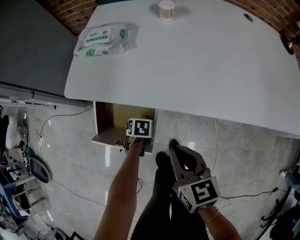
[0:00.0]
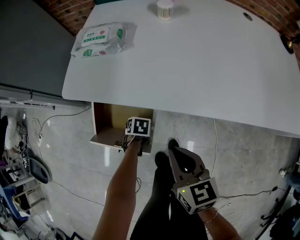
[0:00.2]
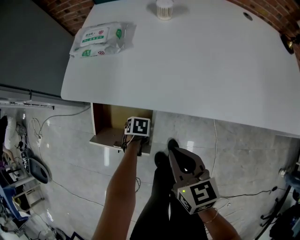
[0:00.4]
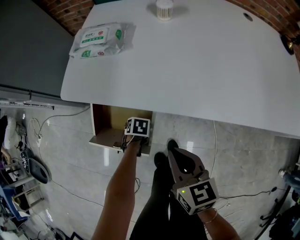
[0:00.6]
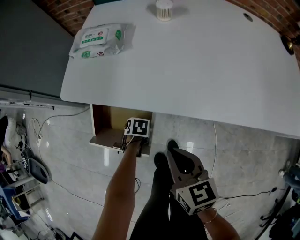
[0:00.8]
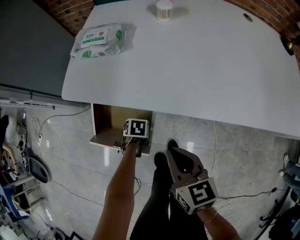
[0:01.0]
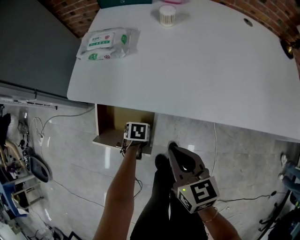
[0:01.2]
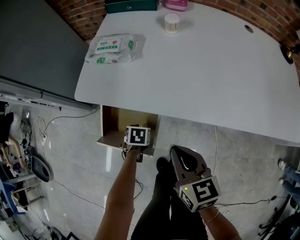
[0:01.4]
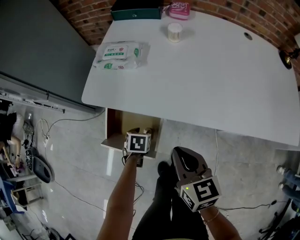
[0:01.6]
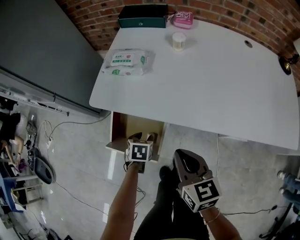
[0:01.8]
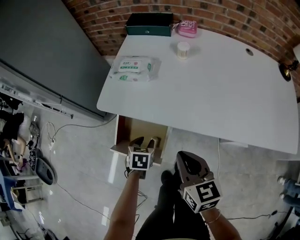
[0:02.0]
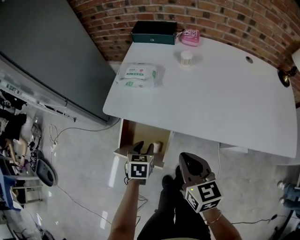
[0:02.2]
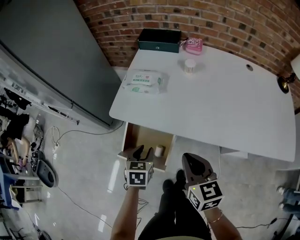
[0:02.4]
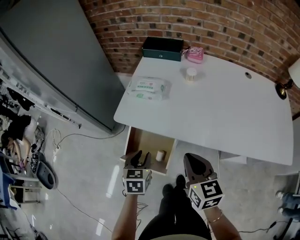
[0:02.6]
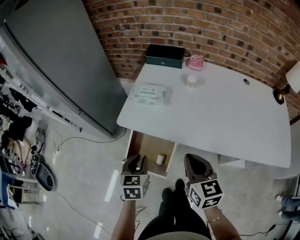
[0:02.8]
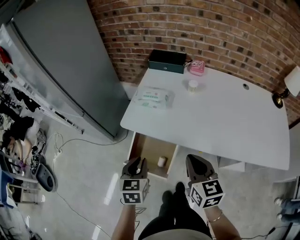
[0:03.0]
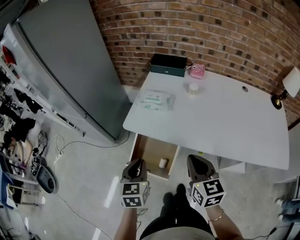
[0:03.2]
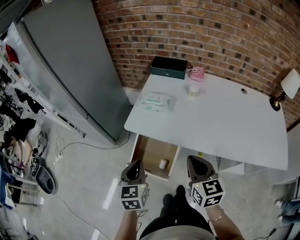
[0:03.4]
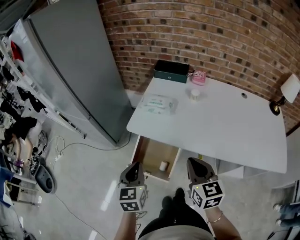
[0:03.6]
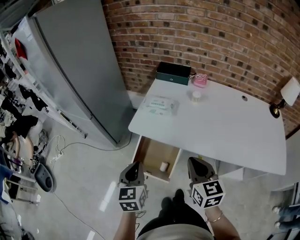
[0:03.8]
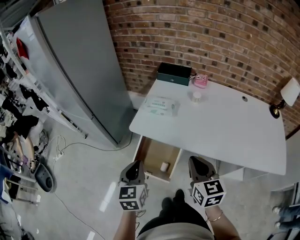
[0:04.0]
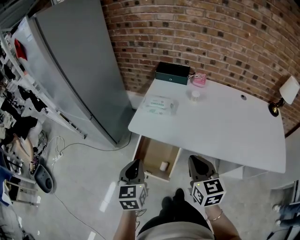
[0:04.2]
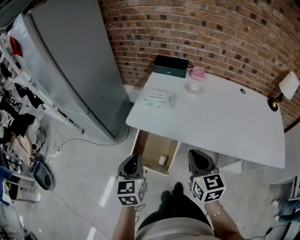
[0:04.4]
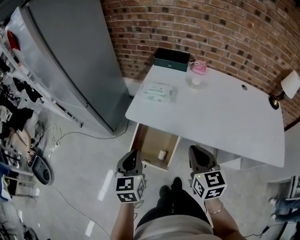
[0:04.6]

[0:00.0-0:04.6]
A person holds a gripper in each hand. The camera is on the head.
0.0 to 1.6 s: The right gripper moves upward, approximately 5 cm, while the left gripper moves upward, some 10 cm.
1.6 to 3.0 s: The right gripper is displaced upward by roughly 15 cm. The left gripper is displaced upward by about 30 cm, angles its fingers upward, by roughly 40 degrees, and closes up.
3.0 to 4.6 s: The left gripper goes approximately 5 cm upward.

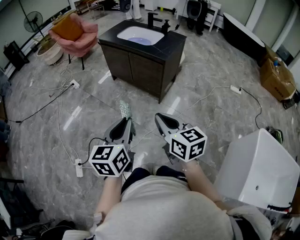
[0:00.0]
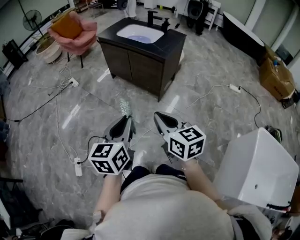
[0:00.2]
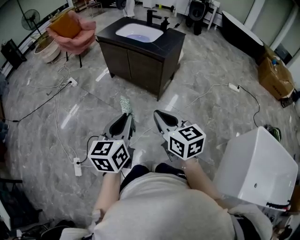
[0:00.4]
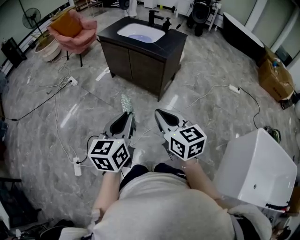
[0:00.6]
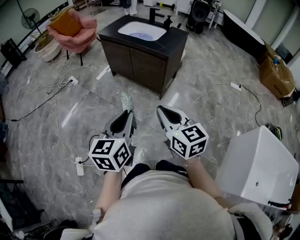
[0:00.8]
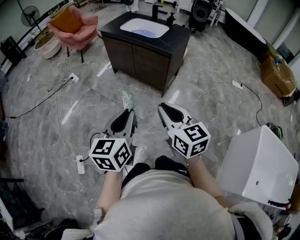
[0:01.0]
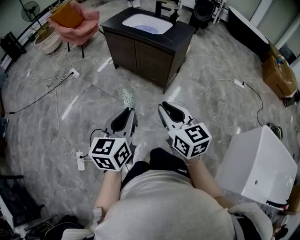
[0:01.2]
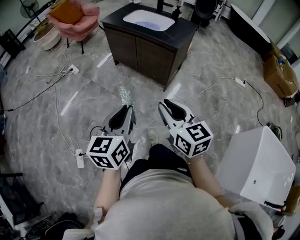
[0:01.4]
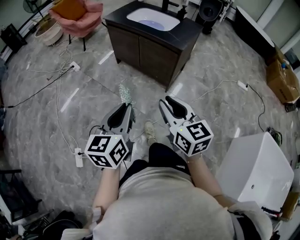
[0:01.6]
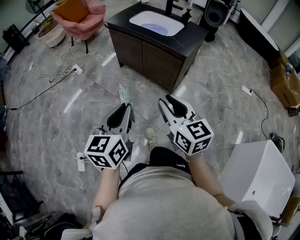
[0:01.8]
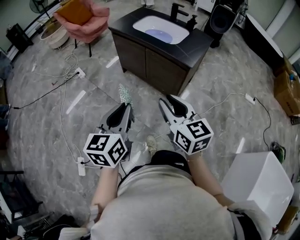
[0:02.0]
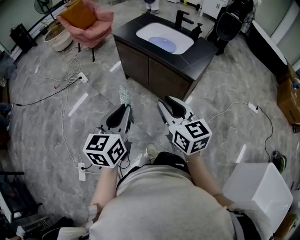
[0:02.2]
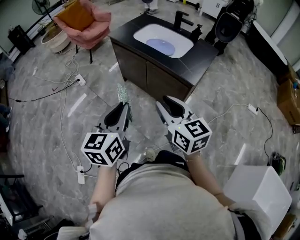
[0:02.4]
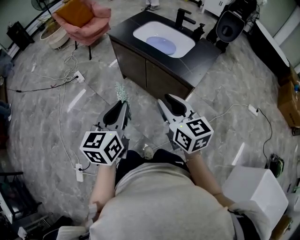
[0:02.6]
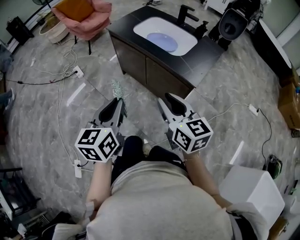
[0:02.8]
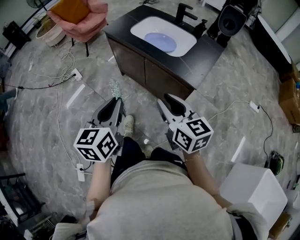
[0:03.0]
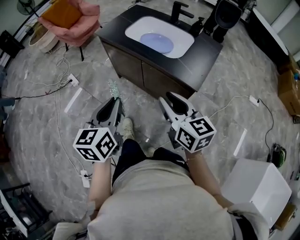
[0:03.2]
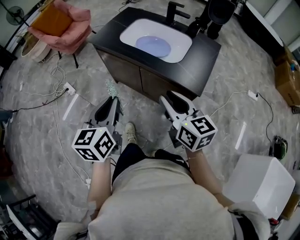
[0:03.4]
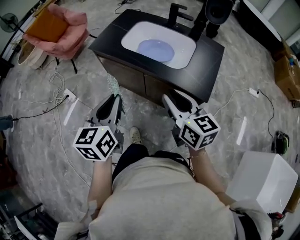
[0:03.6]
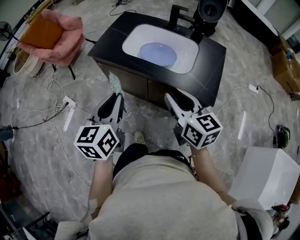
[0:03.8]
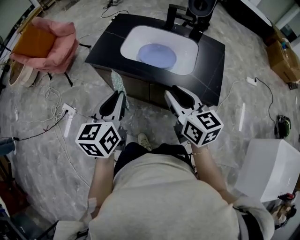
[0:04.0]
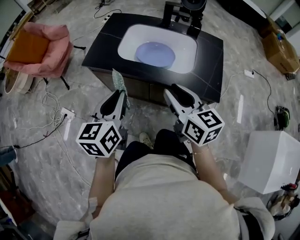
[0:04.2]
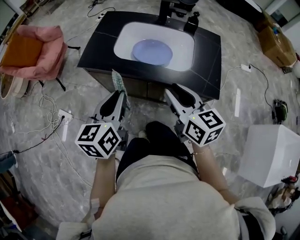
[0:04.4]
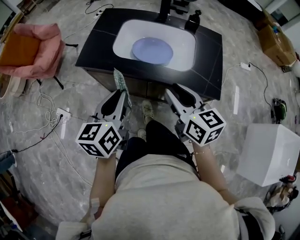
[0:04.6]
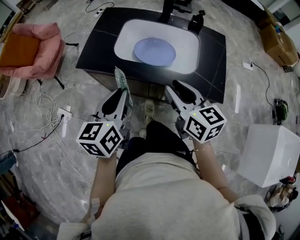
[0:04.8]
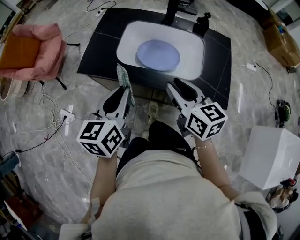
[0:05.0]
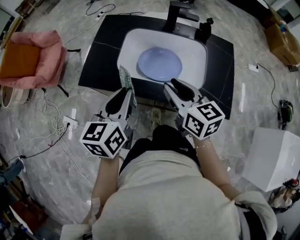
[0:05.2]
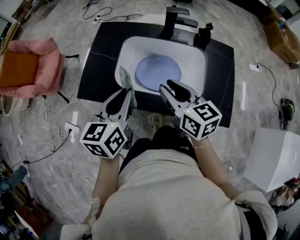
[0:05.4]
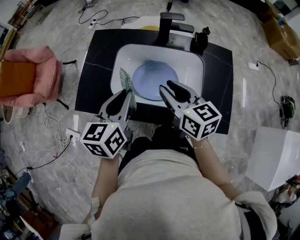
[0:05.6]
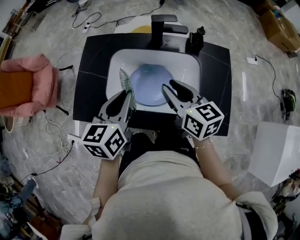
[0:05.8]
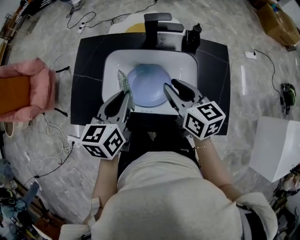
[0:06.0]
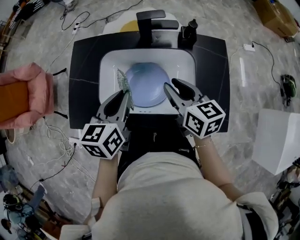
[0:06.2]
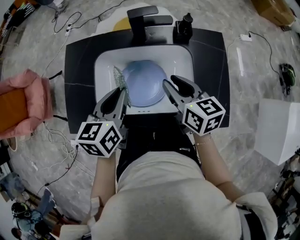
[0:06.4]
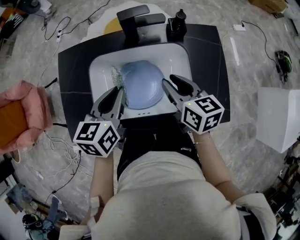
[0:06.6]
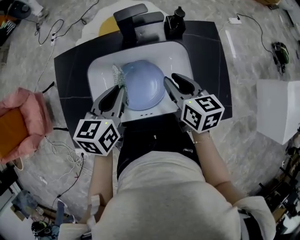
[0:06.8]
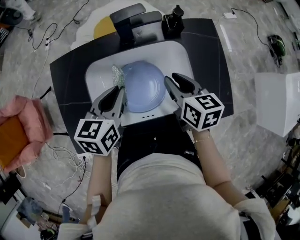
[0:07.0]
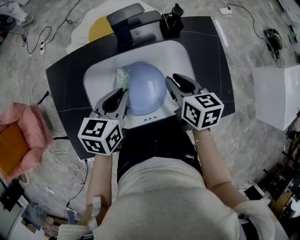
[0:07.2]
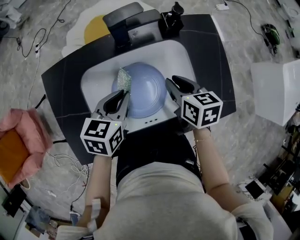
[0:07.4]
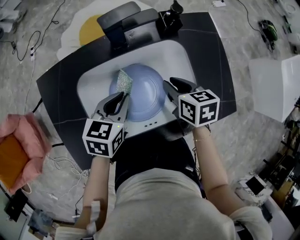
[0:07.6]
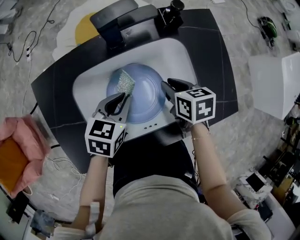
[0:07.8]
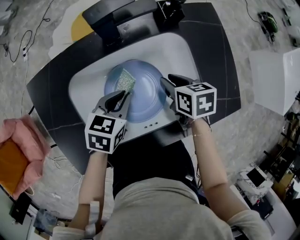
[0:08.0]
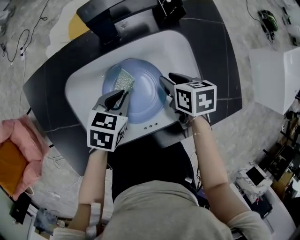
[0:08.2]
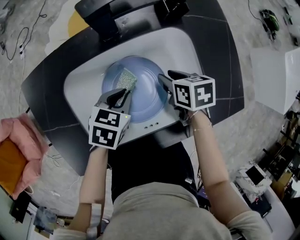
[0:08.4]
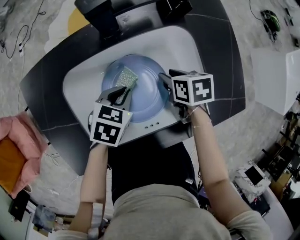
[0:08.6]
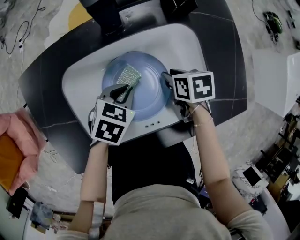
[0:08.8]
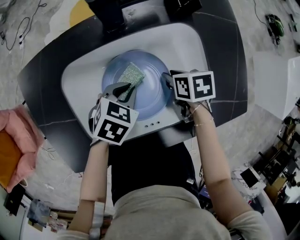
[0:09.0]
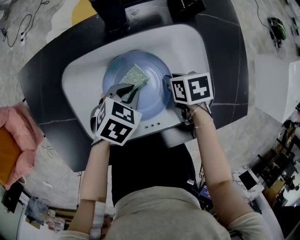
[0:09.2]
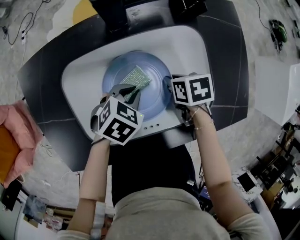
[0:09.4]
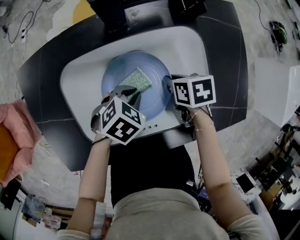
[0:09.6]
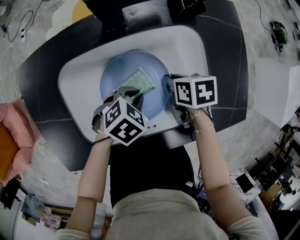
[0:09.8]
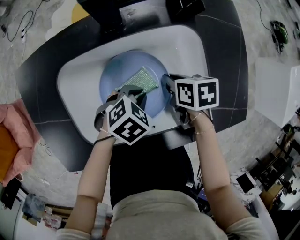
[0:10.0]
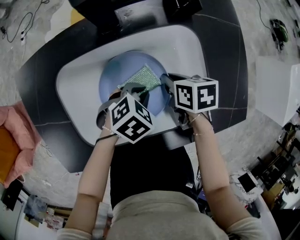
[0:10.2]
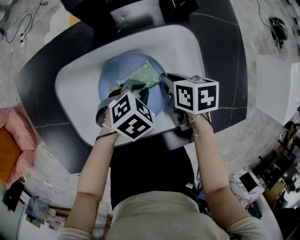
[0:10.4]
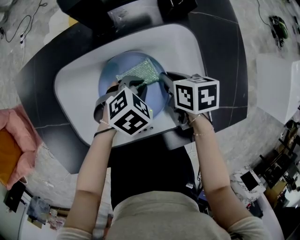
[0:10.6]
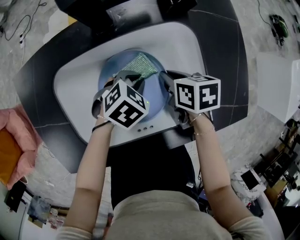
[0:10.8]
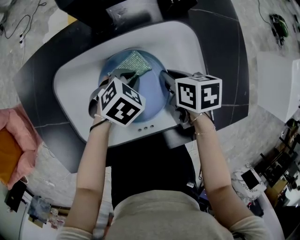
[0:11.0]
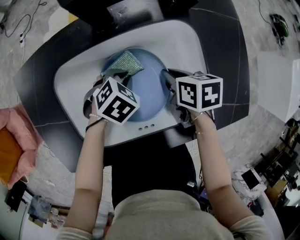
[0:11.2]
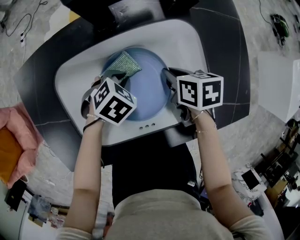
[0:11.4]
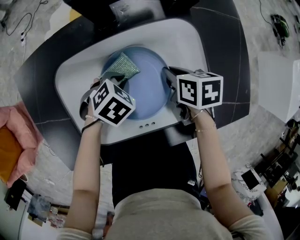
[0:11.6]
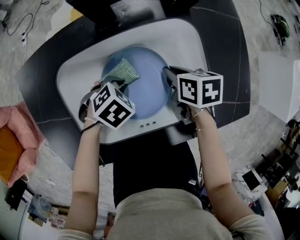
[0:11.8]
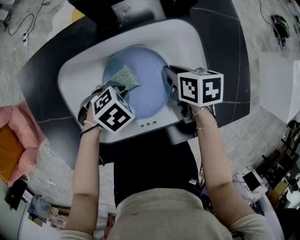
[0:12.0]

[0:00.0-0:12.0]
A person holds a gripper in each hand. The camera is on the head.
0.0 to 1.6 s: Both grippers travel together forward and to the left, roughly 10 cm. The right gripper opens up.
1.6 to 3.0 s: Both grippers travel together forward, some 30 cm.
3.0 to 4.4 s: Both grippers travel together forward, some 25 cm. The left gripper turns by roughly 30 degrees. Meanwhile the right gripper rotates about 20 degrees.
4.4 to 6.0 s: The grippers both shift forward by about 25 cm.
6.0 to 7.6 s: Both grippers move downward, some 15 cm. The right gripper turns by some 40 degrees; the left gripper swivels approximately 40 degrees.
7.6 to 9.0 s: Both grippers travel together downward, approximately 10 cm. The left gripper rotates roughly 20 degrees. Meanwhile the right gripper turns by some 20 degrees.
9.0 to 10.4 s: The left gripper ends up some 5 cm from where it was.
10.4 to 12.0 s: The left gripper changes place by approximately 10 cm.

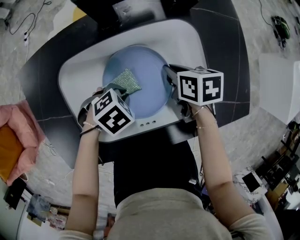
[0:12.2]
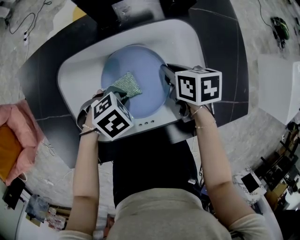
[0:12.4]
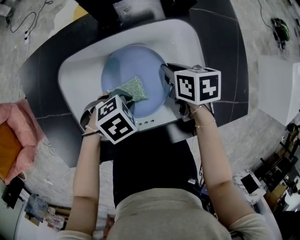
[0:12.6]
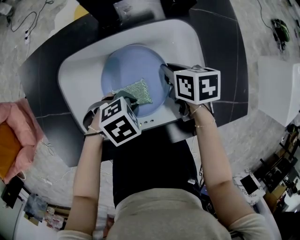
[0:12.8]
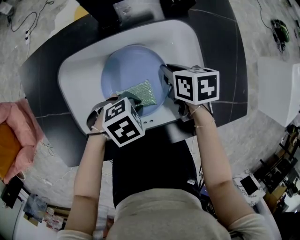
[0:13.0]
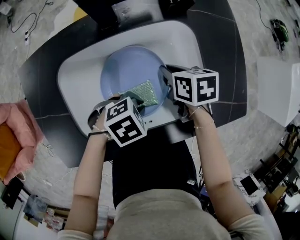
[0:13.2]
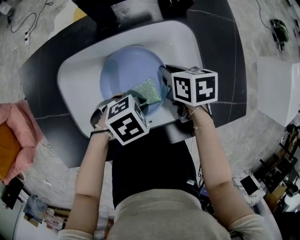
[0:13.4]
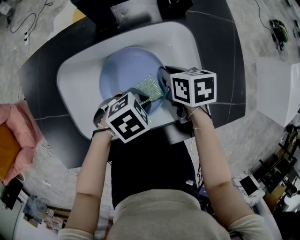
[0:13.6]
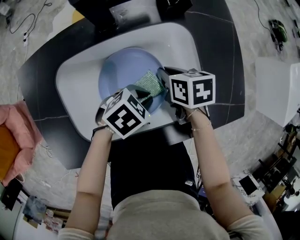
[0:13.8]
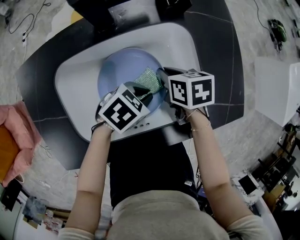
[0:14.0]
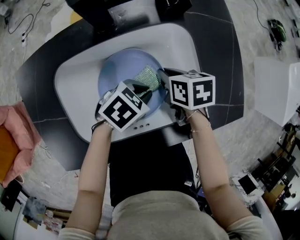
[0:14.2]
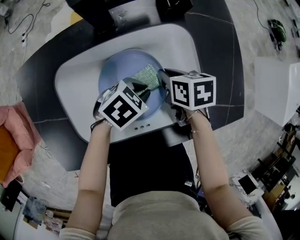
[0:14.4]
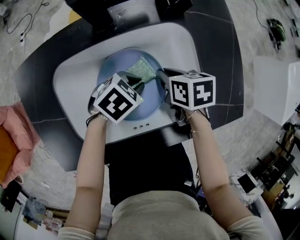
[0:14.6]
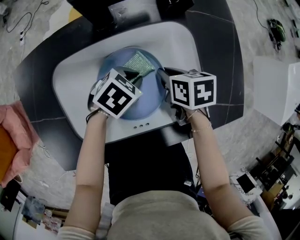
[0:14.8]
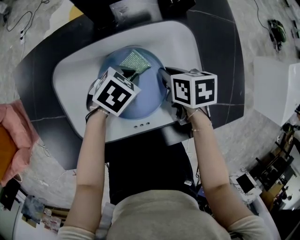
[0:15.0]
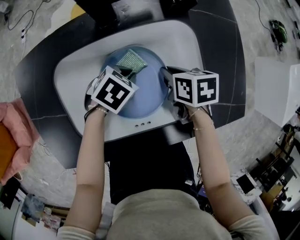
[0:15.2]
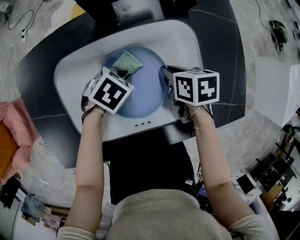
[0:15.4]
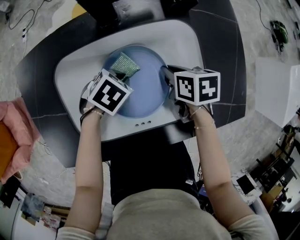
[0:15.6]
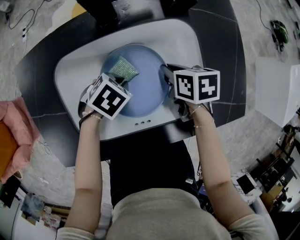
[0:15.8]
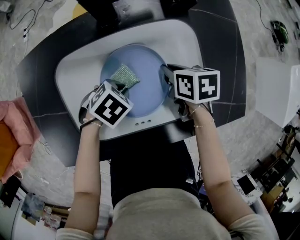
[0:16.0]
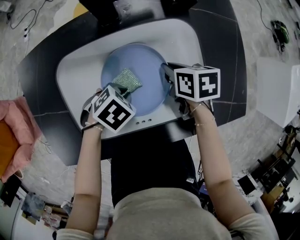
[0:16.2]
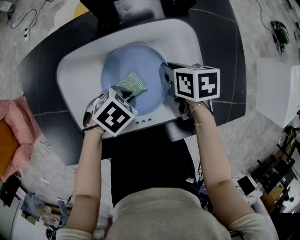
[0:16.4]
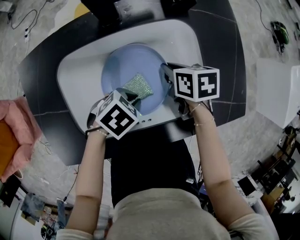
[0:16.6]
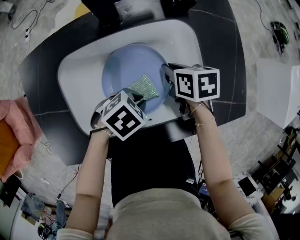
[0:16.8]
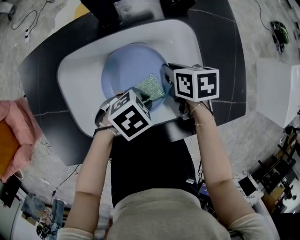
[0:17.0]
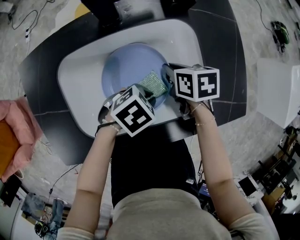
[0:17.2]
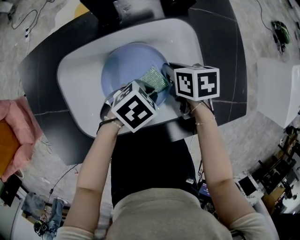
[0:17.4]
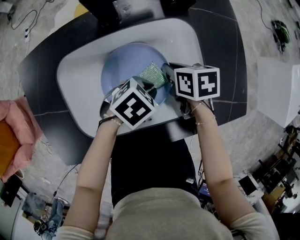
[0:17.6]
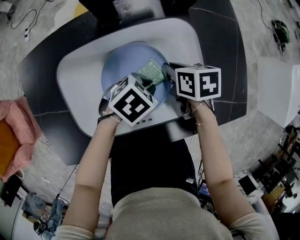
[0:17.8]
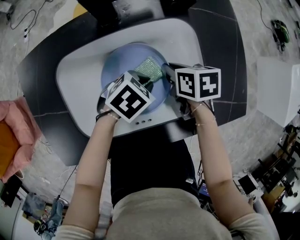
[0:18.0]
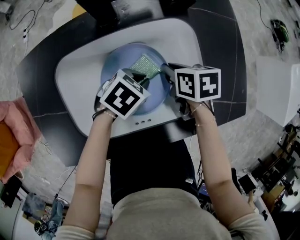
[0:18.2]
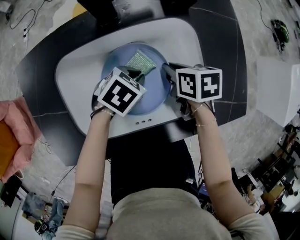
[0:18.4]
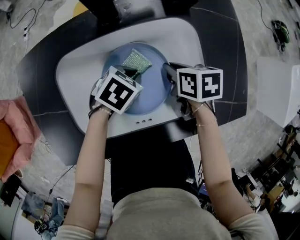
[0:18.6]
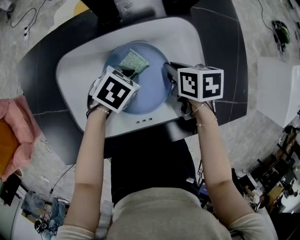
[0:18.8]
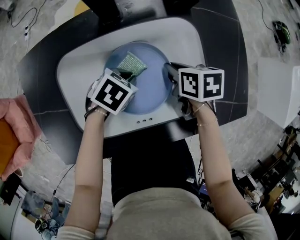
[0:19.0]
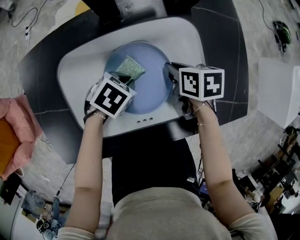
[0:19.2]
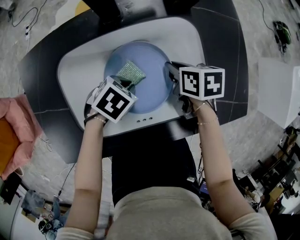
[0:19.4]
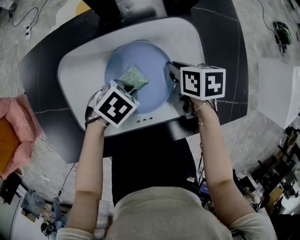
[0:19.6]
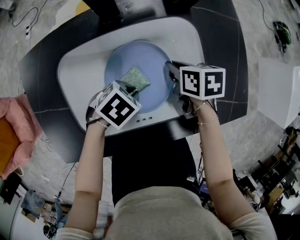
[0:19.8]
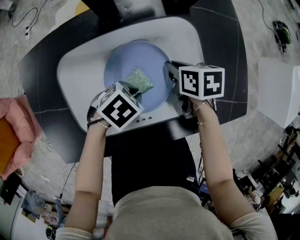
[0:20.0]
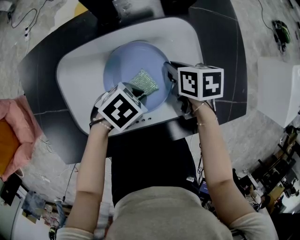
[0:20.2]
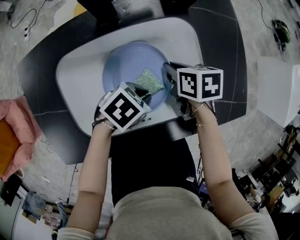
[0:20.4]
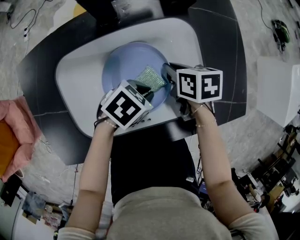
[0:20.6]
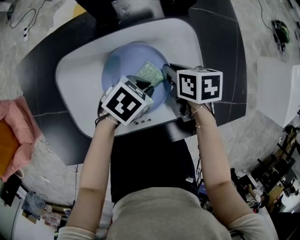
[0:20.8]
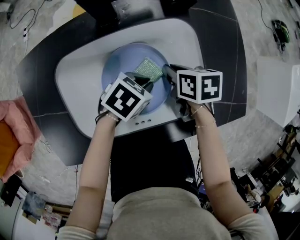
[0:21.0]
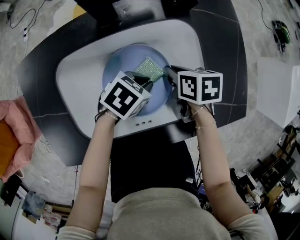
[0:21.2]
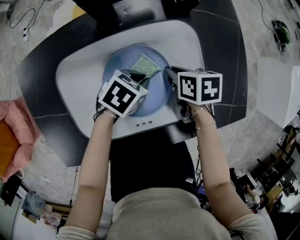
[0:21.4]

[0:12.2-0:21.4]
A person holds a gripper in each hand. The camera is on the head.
12.2 to 13.8 s: The left gripper shifts by roughly 10 cm.
13.8 to 15.2 s: The left gripper moves some 10 cm.
15.2 to 16.8 s: The left gripper changes place by some 10 cm.
16.8 to 18.4 s: The left gripper ends up some 10 cm from where it was.
18.4 to 19.8 s: The left gripper changes place by approximately 5 cm.
19.8 to 21.4 s: The left gripper changes place by about 5 cm.
